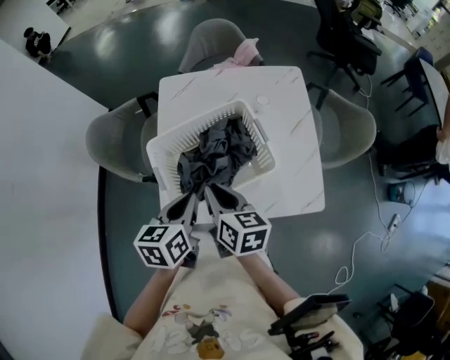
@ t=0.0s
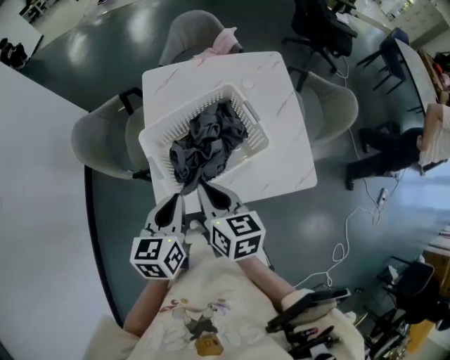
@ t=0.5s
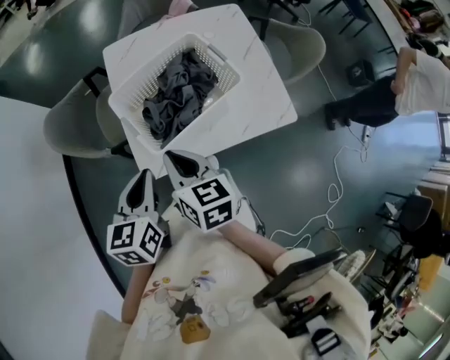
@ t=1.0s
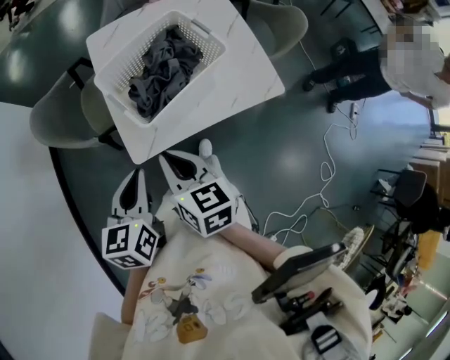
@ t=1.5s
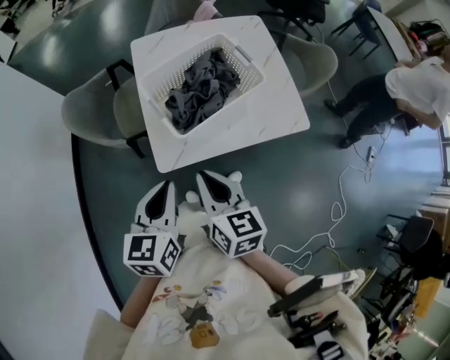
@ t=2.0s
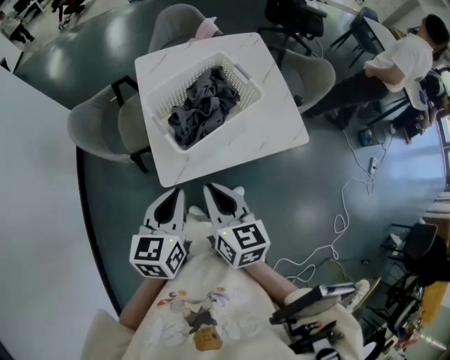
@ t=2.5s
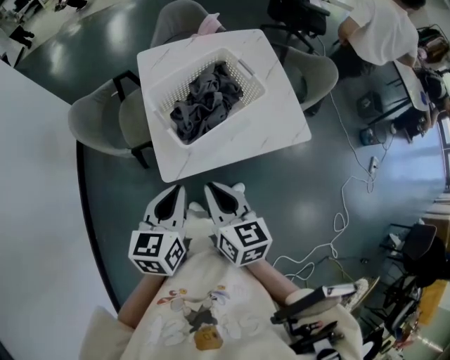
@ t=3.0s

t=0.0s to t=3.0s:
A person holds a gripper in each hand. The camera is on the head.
t=0.0s to t=1.5s: The two grippers go about 20 cm backward and to the left.
t=1.5s to t=3.0s: The grippers stay close to where they were, moving slightly.

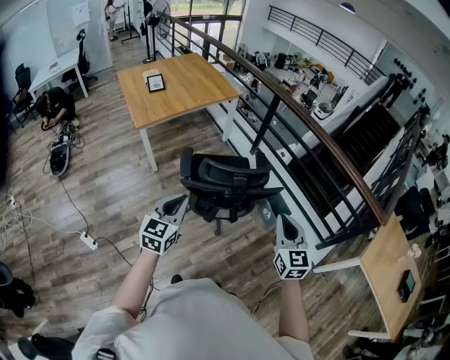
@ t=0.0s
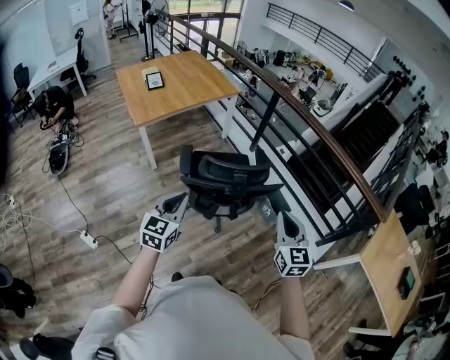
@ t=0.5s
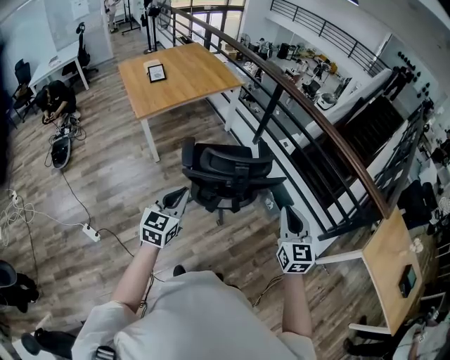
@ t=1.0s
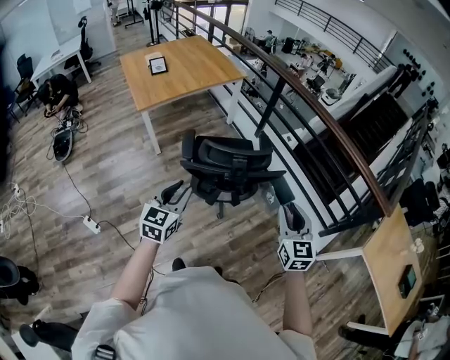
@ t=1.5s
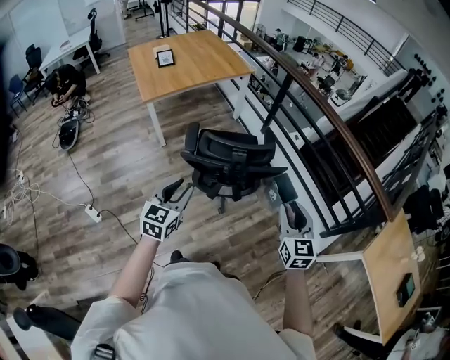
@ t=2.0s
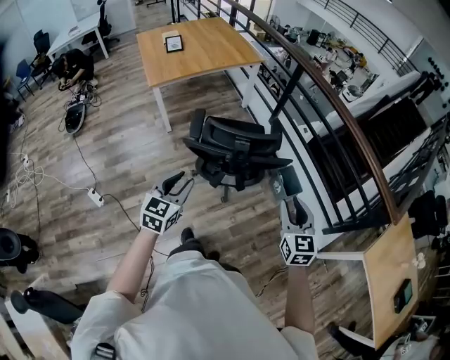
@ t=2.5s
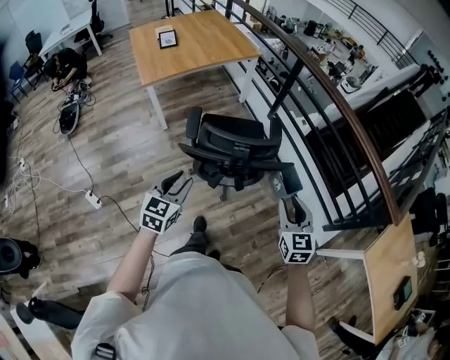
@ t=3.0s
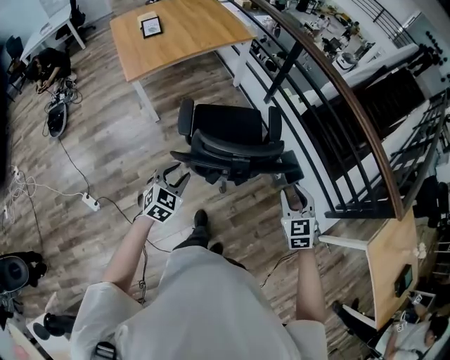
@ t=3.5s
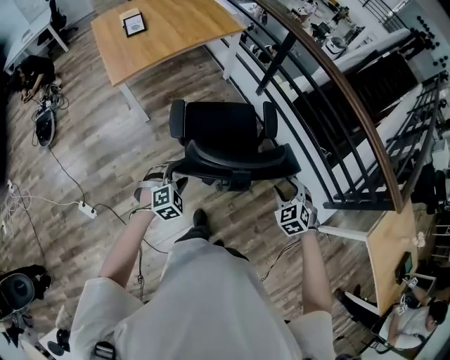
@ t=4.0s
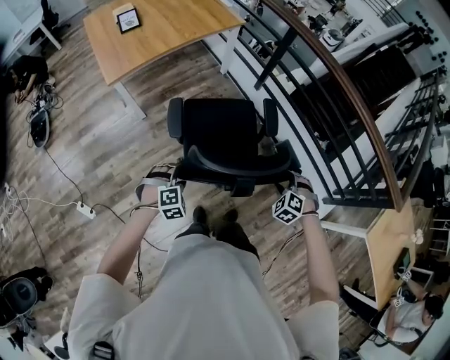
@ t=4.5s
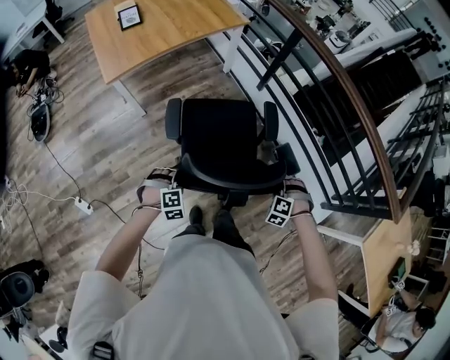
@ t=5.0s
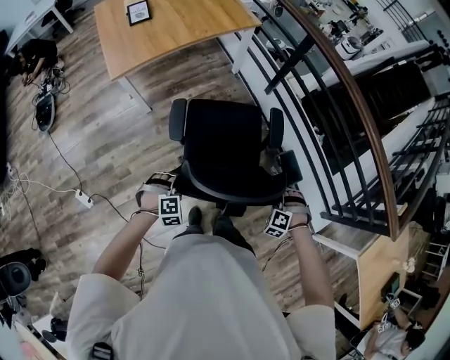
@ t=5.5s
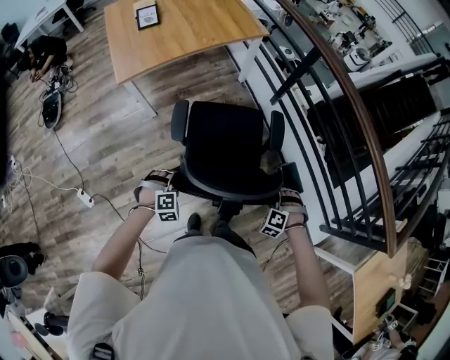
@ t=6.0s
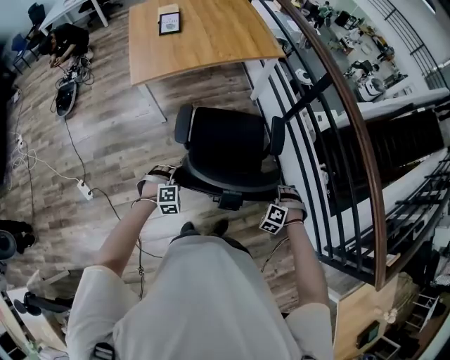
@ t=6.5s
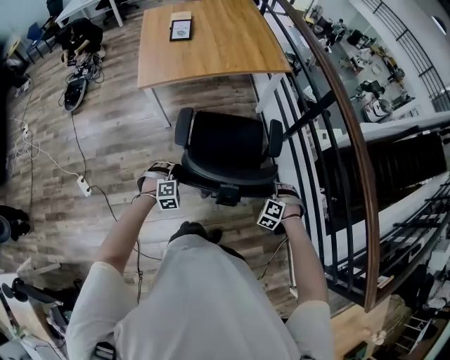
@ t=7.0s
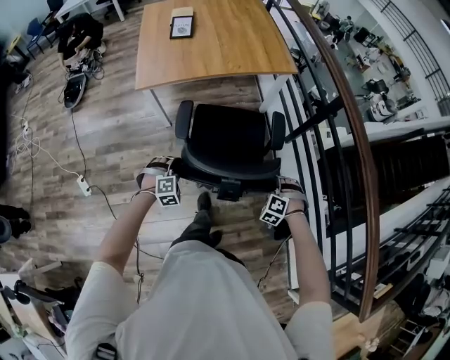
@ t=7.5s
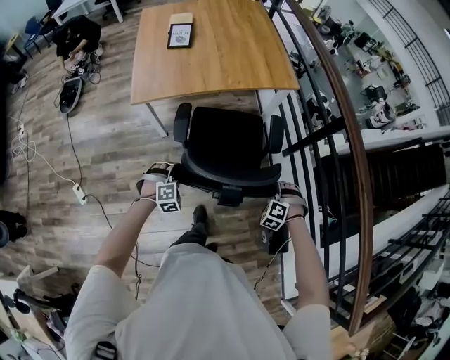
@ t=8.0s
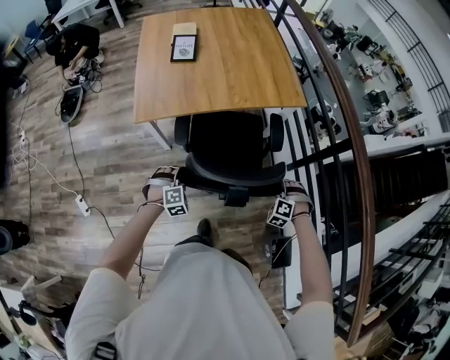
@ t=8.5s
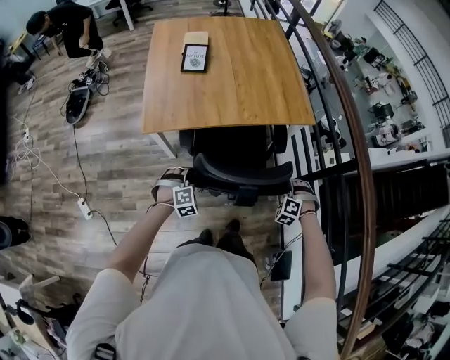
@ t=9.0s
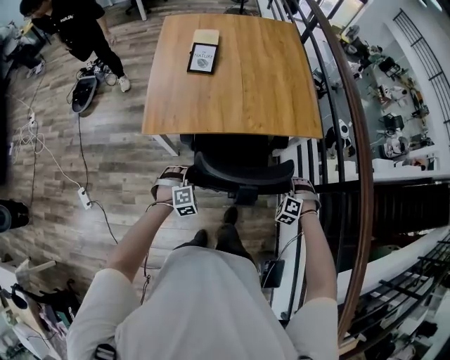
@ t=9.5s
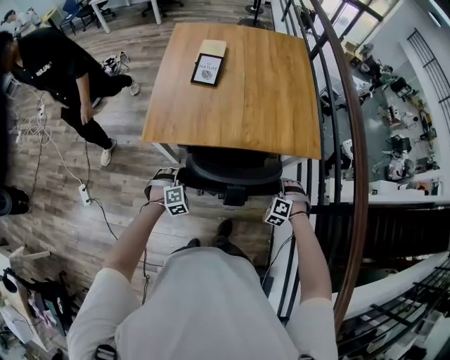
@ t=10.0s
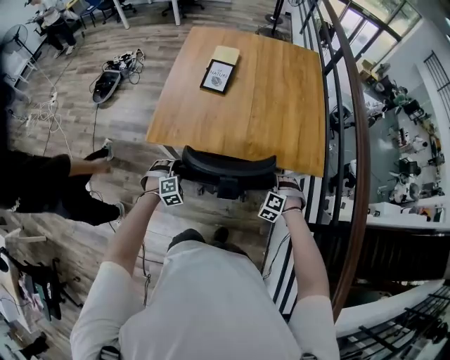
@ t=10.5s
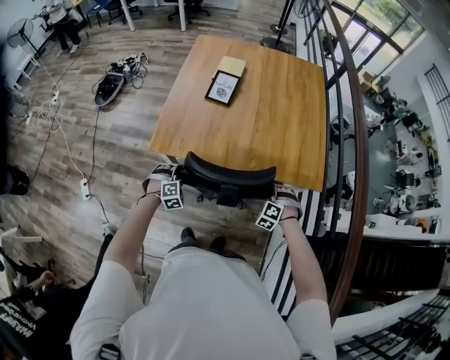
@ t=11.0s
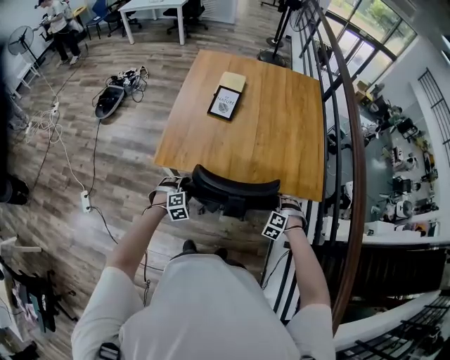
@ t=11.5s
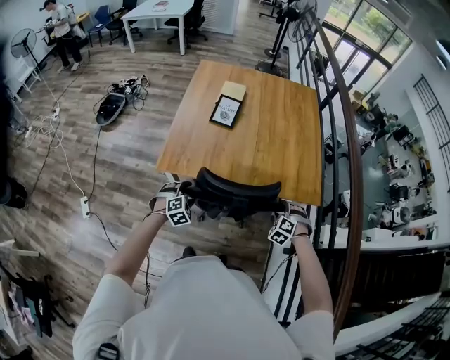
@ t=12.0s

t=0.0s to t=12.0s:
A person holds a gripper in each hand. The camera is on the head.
t=0.0s to t=2.0s: The right gripper heads to the right, covering roughly 5 cm, and opens. Meanwhile the left gripper moves about 5 cm, and opens its fingers.
t=2.0s to t=4.0s: The right gripper shifts approximately 25 cm forward and downward, and angles its fingers downward, by some 30 degrees. The left gripper moves downward and forward, roughly 30 cm, and rolls clockwise, seen from behind, by approximately 50 degrees.
t=4.0s to t=6.0s: The left gripper travels downward and forward by approximately 10 cm, and closes. The right gripper heads forward and downward, covering approximately 15 cm, rolls counterclockwise, seen from behind, by some 40 degrees, and closes its fingers.
t=6.0s to t=8.0s: Both grippers travel together forward, about 30 cm.
t=8.0s to t=10.0s: Both grippers move forward, approximately 30 cm.
t=10.0s to t=12.0s: The right gripper moves forward, roughly 5 cm, and opens; the left gripper heads upward, covering approximately 5 cm, and opens its fingers.

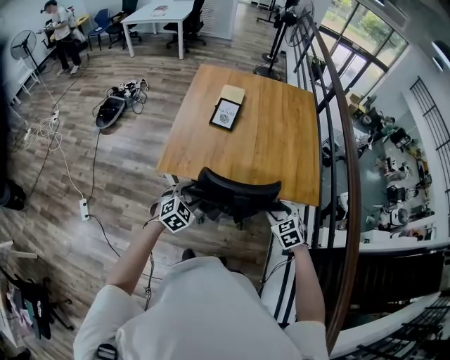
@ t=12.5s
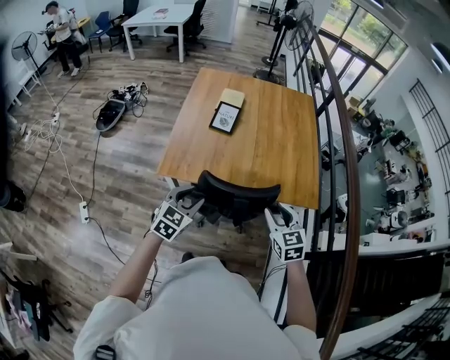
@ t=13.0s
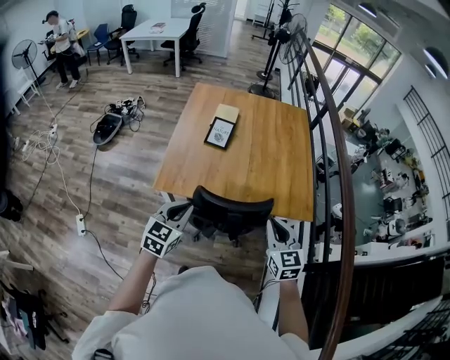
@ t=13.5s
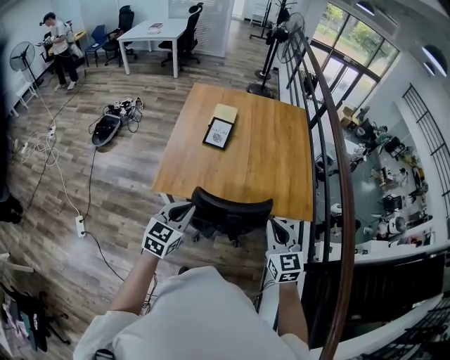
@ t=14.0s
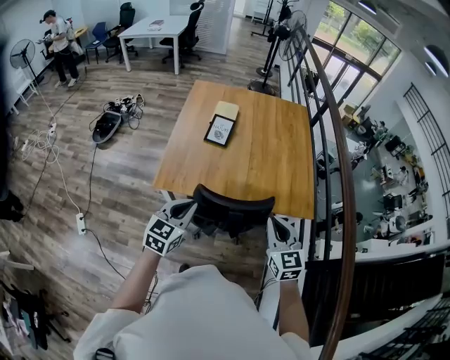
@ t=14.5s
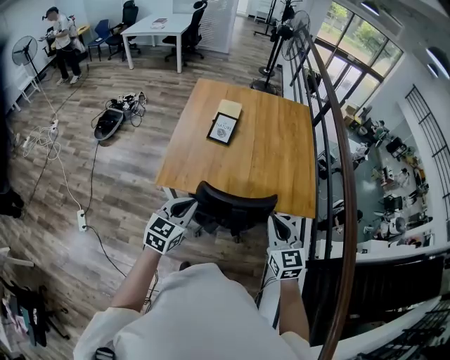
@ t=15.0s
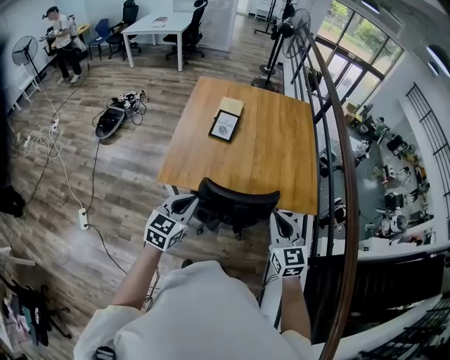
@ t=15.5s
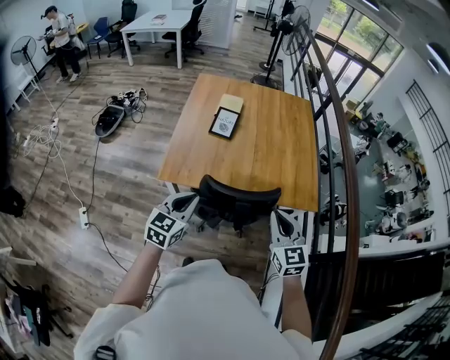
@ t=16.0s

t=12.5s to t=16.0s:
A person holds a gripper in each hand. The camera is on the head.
t=12.5s to t=14.5s: Both grippers move upward, approximately 15 cm. The right gripper angles its fingers upward, by approximately 30 degrees, and closes up; the left gripper changes its angle by about 40 degrees, and closes up.
t=14.5s to t=16.0s: The grippers make only small movements.

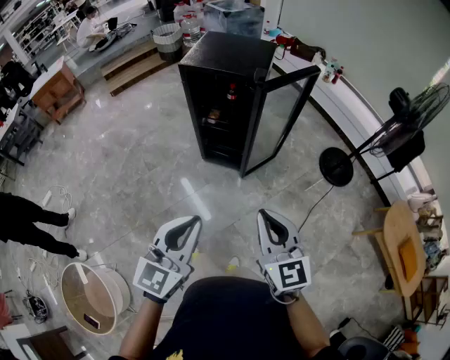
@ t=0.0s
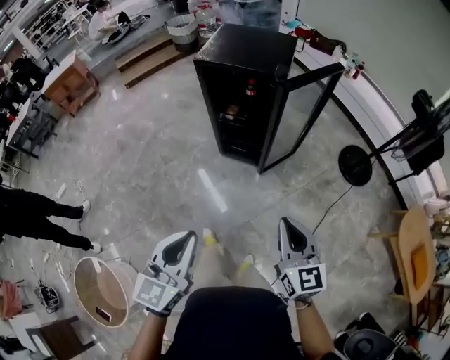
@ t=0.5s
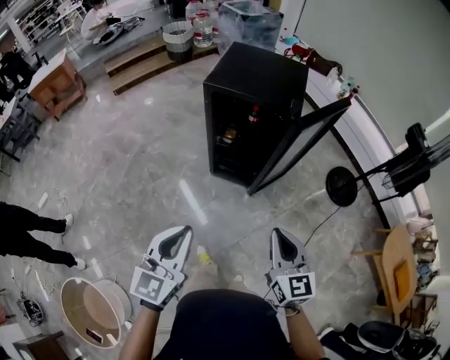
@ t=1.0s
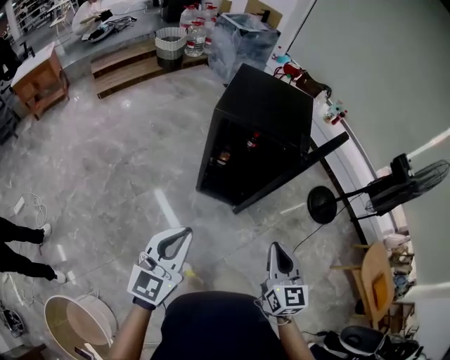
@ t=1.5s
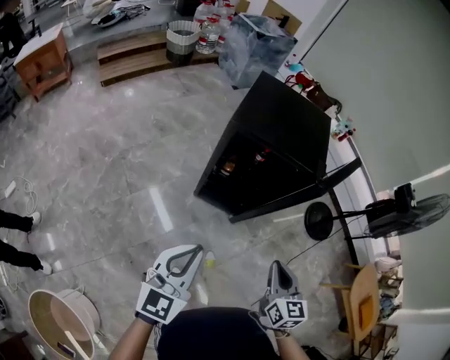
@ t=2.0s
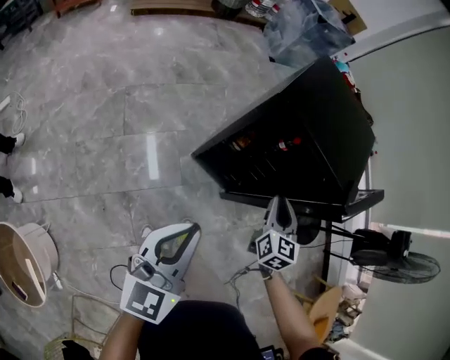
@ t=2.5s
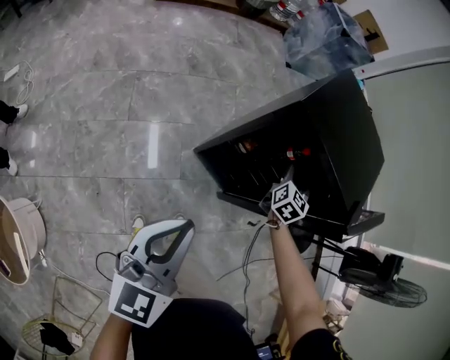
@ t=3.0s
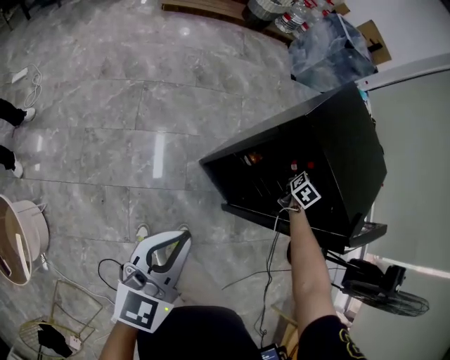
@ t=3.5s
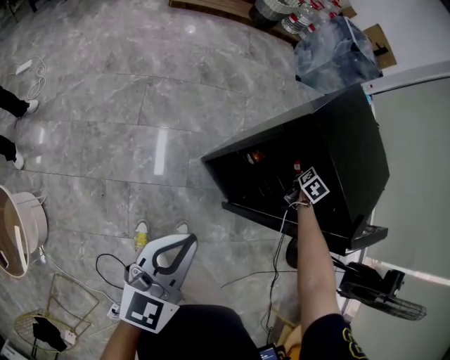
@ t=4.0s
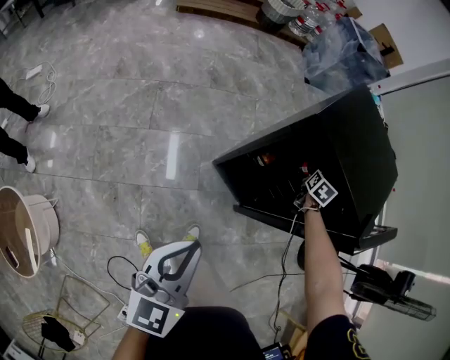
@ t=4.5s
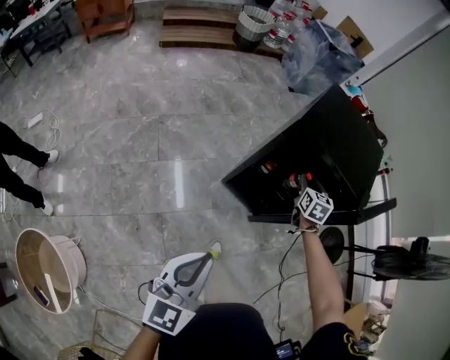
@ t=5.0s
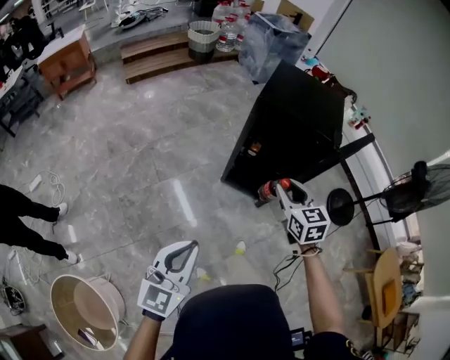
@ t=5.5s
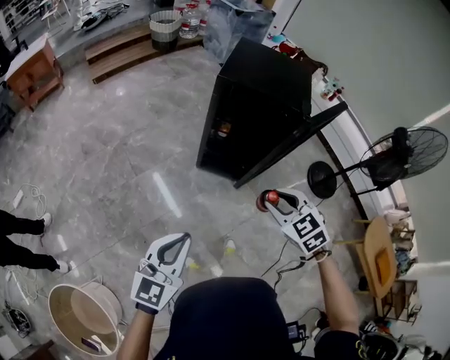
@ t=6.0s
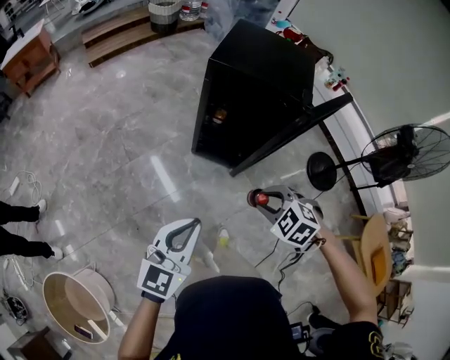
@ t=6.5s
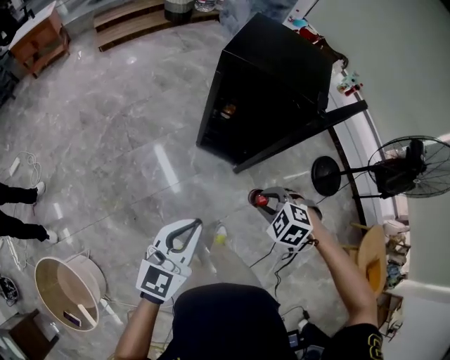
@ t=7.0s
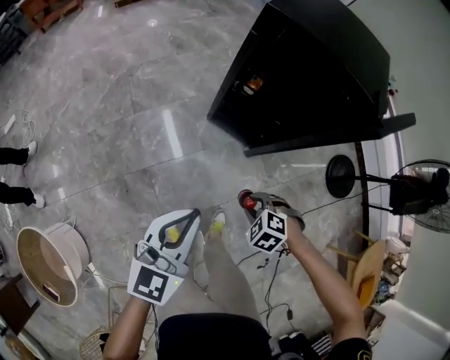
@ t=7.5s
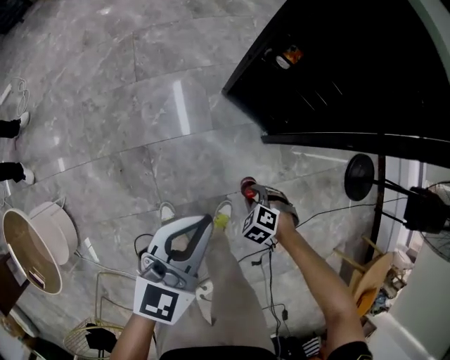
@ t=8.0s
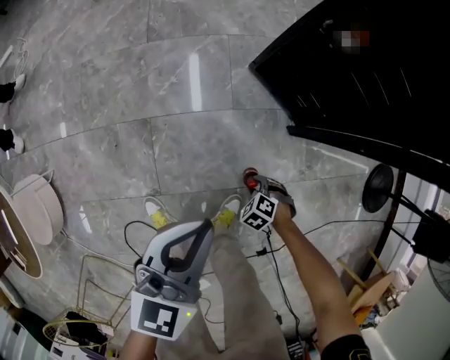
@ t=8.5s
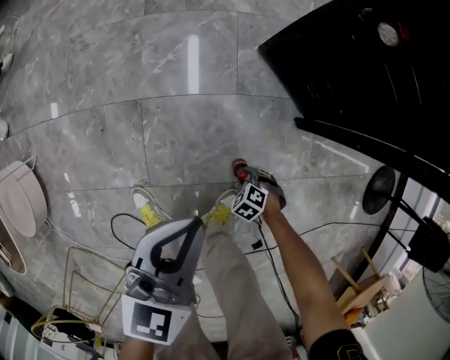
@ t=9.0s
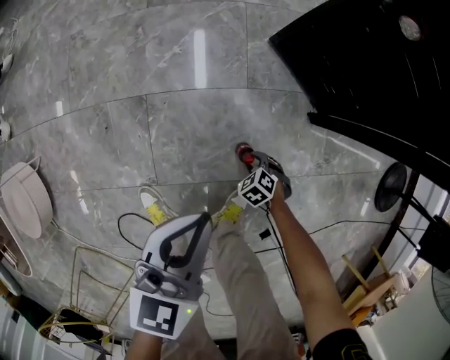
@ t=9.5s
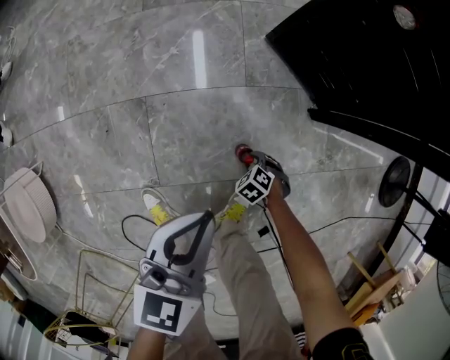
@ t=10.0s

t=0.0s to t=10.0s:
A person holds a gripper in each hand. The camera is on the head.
t=0.0s to t=2.0s: The right gripper moves forward, to the left and downward, some 25 cm, and turns by some 30 degrees; the left gripper is displaced forward and to the left by some 35 cm.
t=2.0s to t=4.0s: The left gripper goes some 10 cm downward, and rotates some 30 degrees; the right gripper shifts some 60 cm forward and downward, and opens.
t=4.0s to t=6.0s: The right gripper travels backward and upward by some 60 cm, turns by some 50 degrees, and closes its fingers. The left gripper is displaced backward and upward by about 25 cm, and changes its angle by some 30 degrees.
t=6.0s to t=8.0s: The left gripper goes approximately 30 cm downward. Meanwhile the right gripper goes roughly 50 cm downward, and tilts its fingers approximately 40 degrees downward.
t=8.0s to t=10.0s: Both grippers travel together downward, about 35 cm. The left gripper swivels some 20 degrees.
